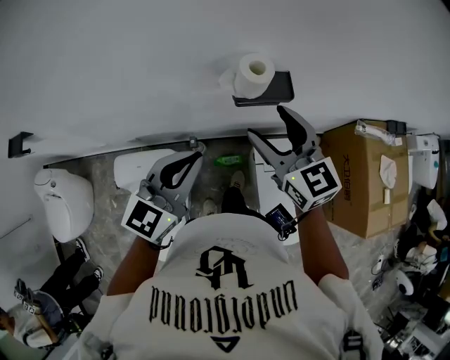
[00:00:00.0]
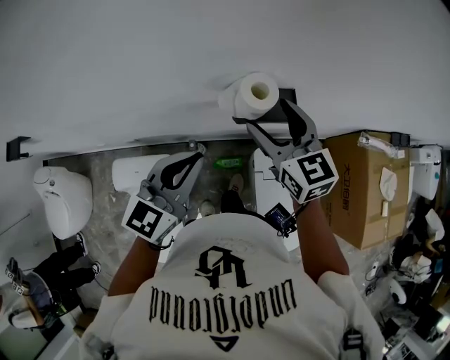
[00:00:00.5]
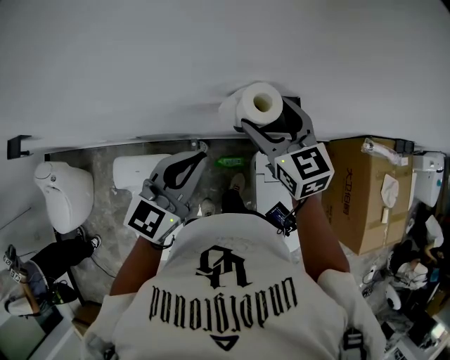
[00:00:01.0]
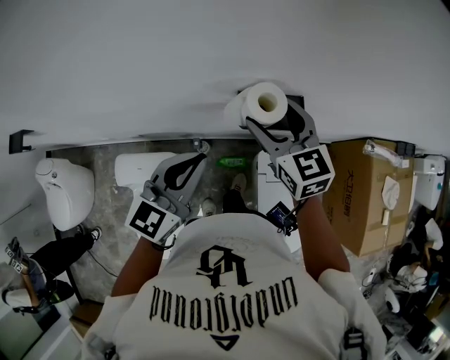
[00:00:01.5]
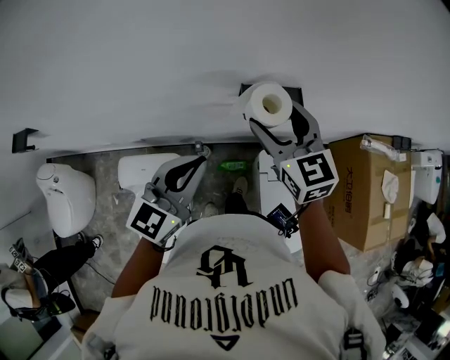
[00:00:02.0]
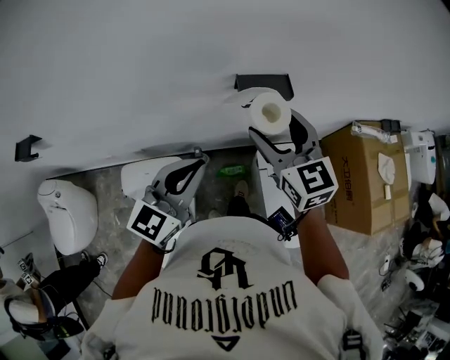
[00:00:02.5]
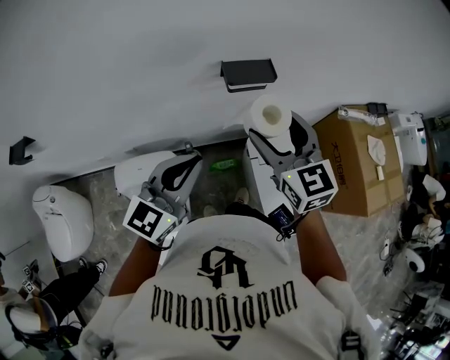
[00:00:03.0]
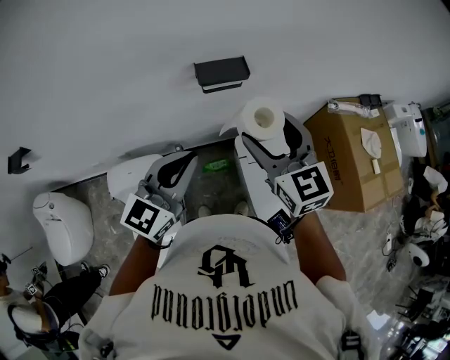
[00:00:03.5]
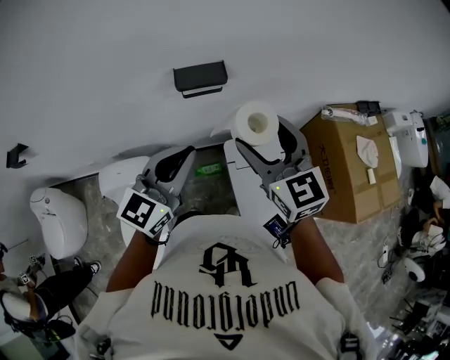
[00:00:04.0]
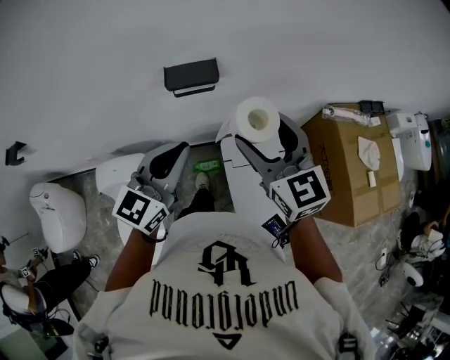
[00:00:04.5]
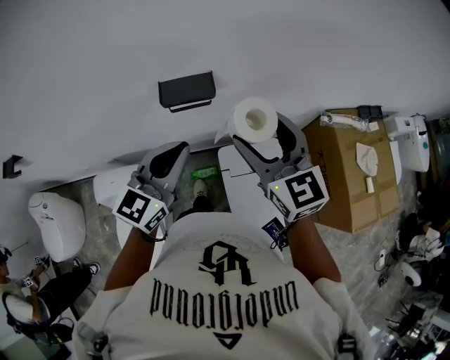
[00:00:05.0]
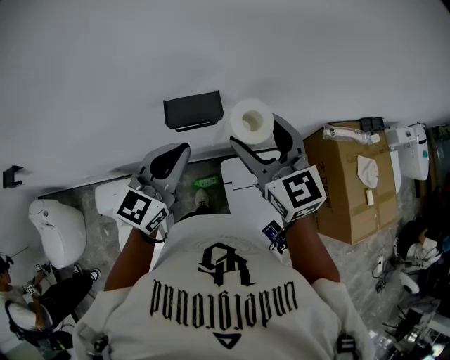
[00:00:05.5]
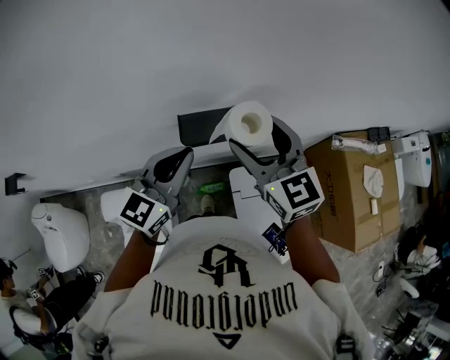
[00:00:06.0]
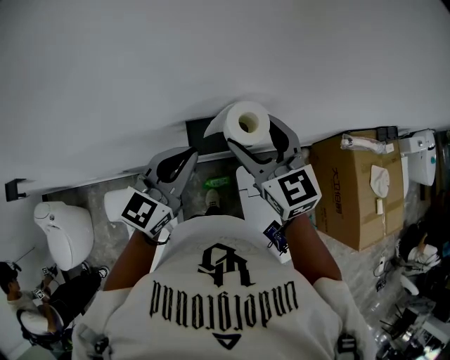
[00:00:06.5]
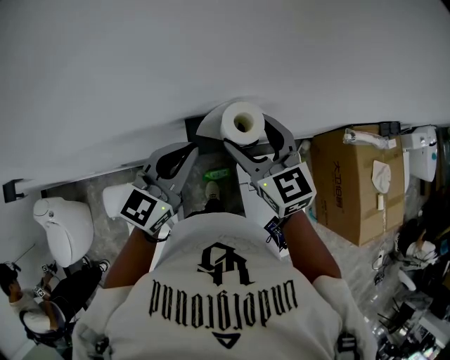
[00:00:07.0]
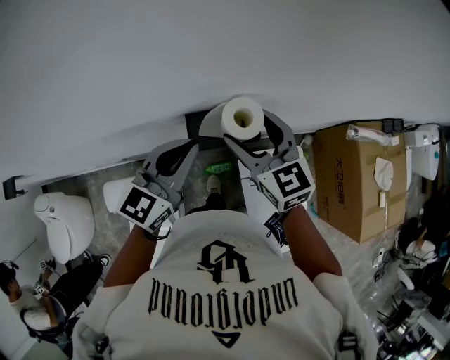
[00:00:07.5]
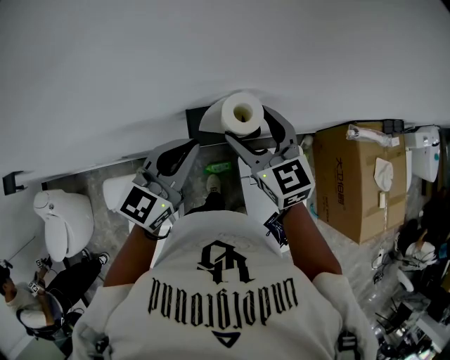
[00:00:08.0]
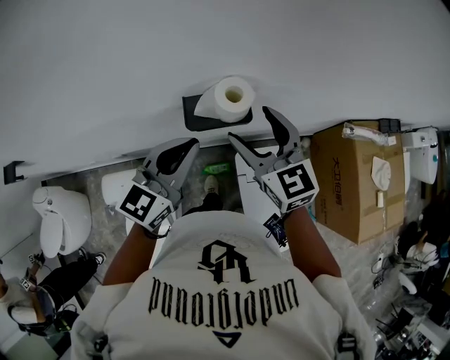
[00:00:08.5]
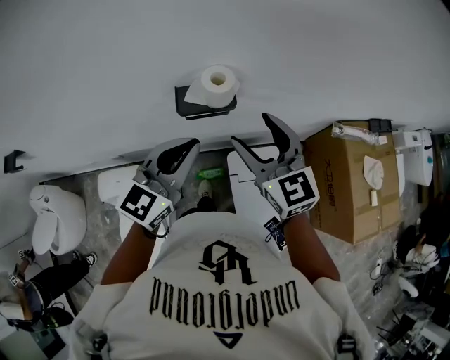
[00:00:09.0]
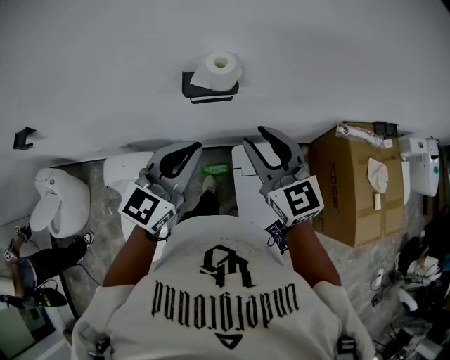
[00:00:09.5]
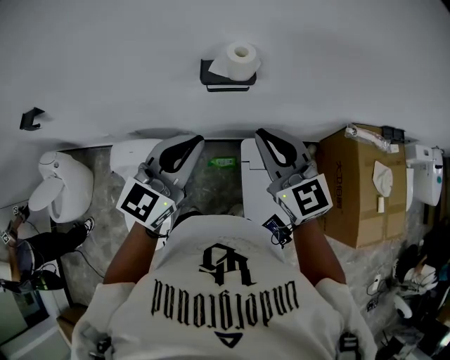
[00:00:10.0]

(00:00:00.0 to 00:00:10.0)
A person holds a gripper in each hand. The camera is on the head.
00:00:00.0 - 00:00:02.0: The right gripper is displaced forward by approximately 5 cm. The left gripper moves roughly 10 cm forward and comes back.
00:00:02.0 - 00:00:04.0: The left gripper travels to the right and backward by some 20 cm. Meanwhile the right gripper is displaced backward and to the right by about 25 cm.
00:00:04.0 - 00:00:06.0: Both grippers move forward, about 20 cm.
00:00:06.0 - 00:00:08.0: The right gripper heads downward, forward and to the left, covering roughly 10 cm, while the left gripper changes place by roughly 5 cm.
00:00:08.0 - 00:00:10.0: Both grippers move backward, about 25 cm. The right gripper closes its fingers.

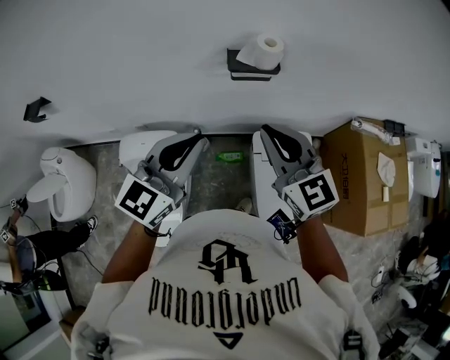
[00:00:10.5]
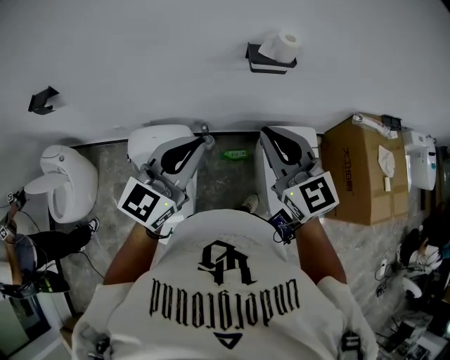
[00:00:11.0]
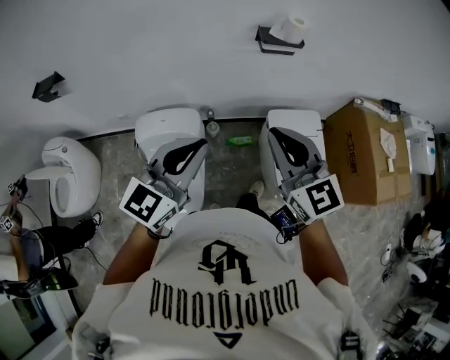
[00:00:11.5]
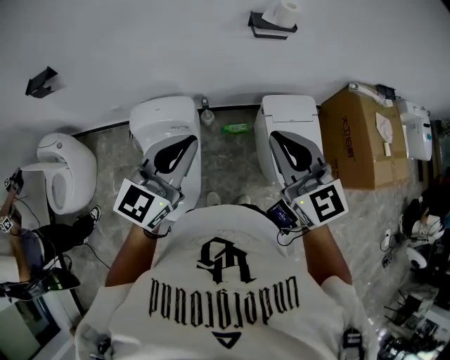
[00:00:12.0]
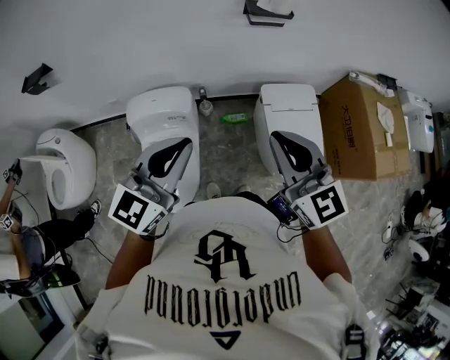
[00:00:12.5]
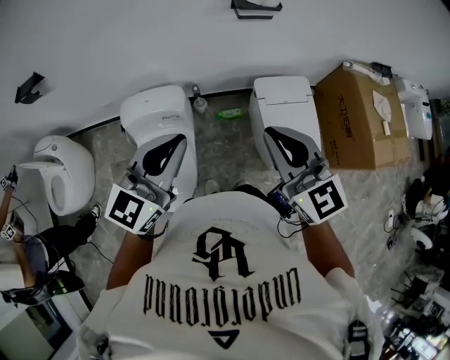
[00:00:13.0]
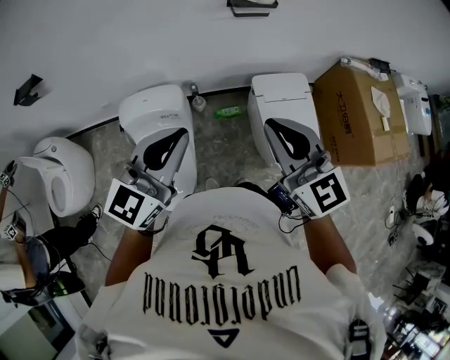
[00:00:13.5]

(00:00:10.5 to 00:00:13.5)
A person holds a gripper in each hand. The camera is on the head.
00:00:10.5 - 00:00:12.0: The two grippers go approximately 25 cm backward and to the left.
00:00:12.0 - 00:00:13.5: The grippers move only a little.

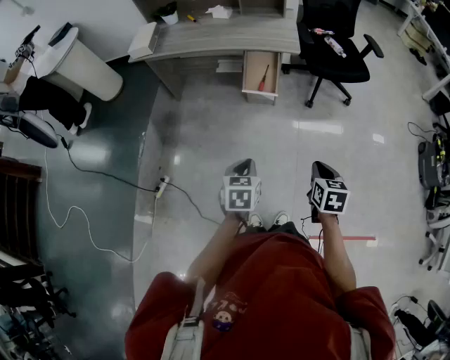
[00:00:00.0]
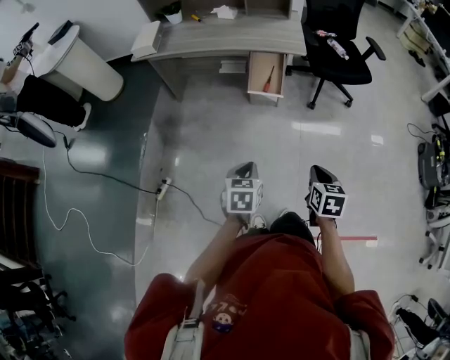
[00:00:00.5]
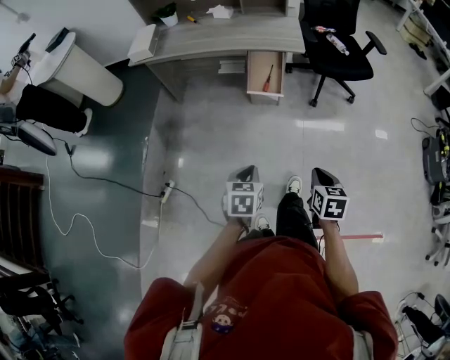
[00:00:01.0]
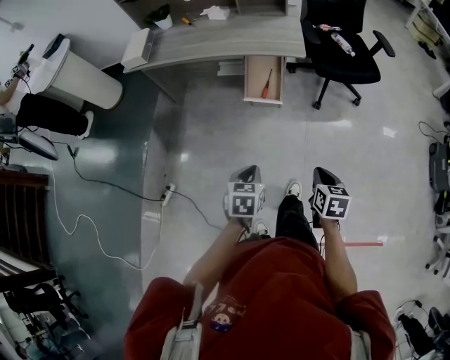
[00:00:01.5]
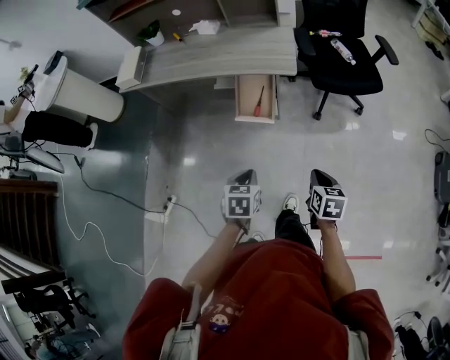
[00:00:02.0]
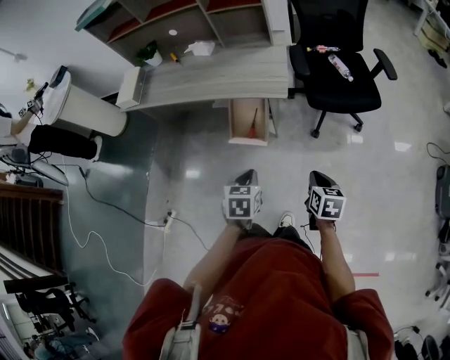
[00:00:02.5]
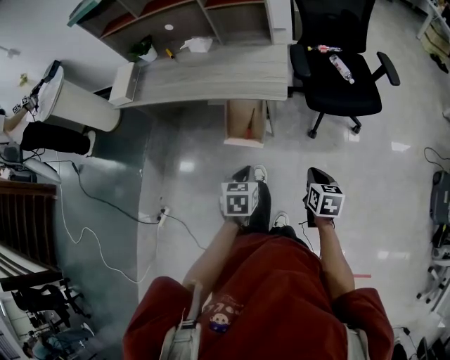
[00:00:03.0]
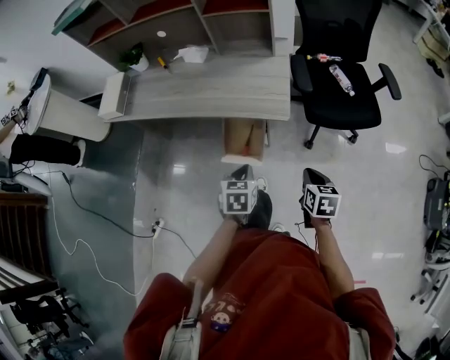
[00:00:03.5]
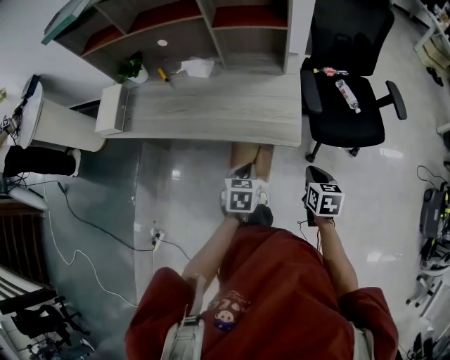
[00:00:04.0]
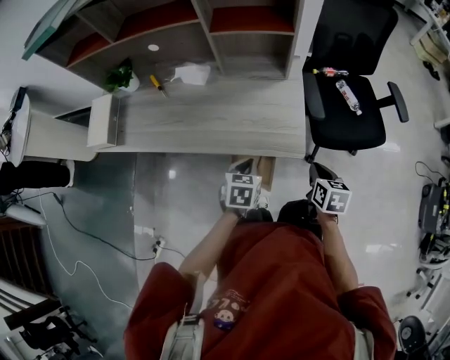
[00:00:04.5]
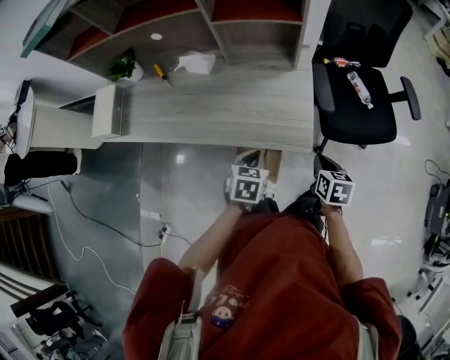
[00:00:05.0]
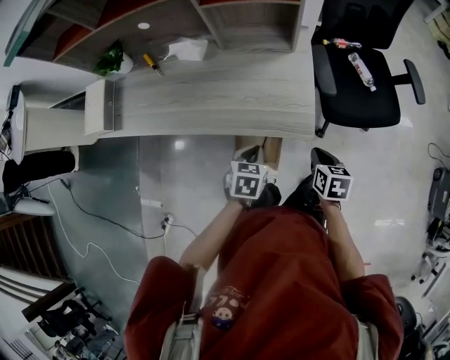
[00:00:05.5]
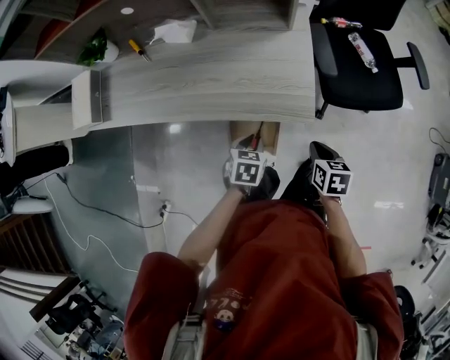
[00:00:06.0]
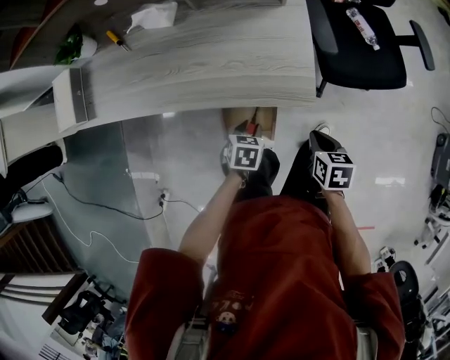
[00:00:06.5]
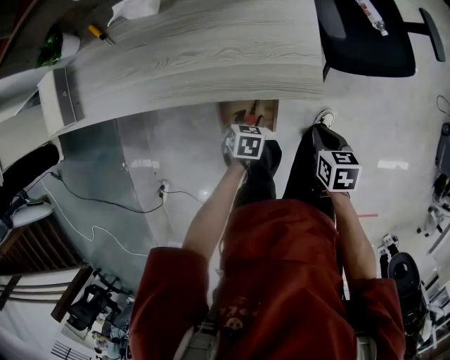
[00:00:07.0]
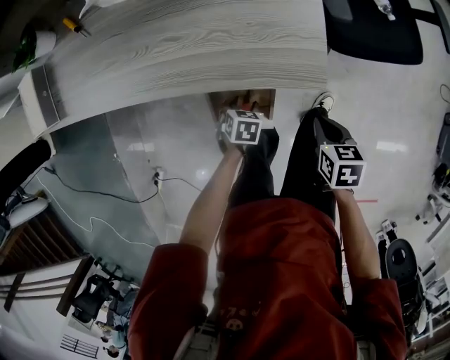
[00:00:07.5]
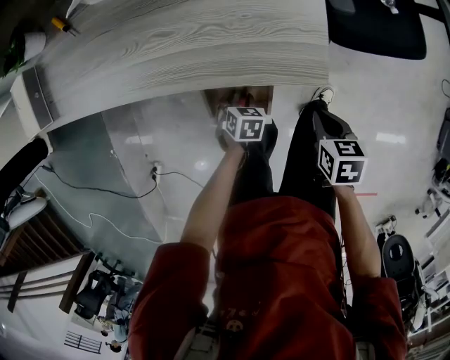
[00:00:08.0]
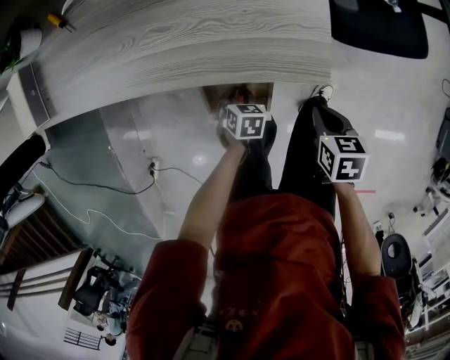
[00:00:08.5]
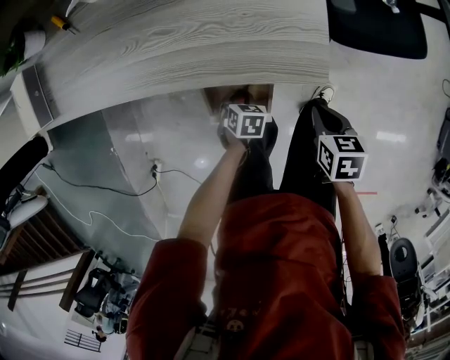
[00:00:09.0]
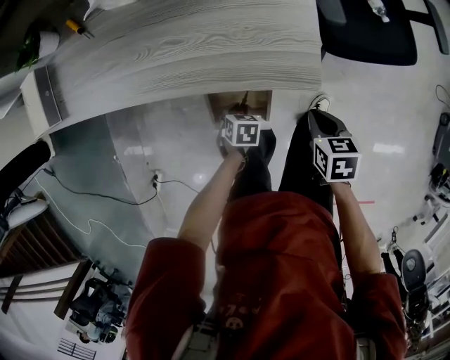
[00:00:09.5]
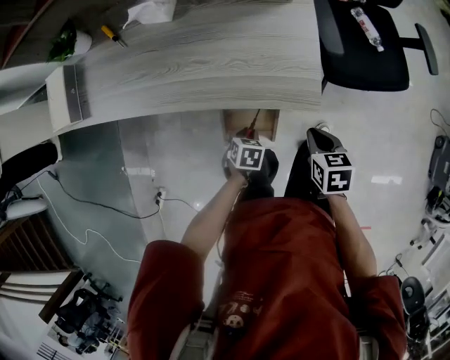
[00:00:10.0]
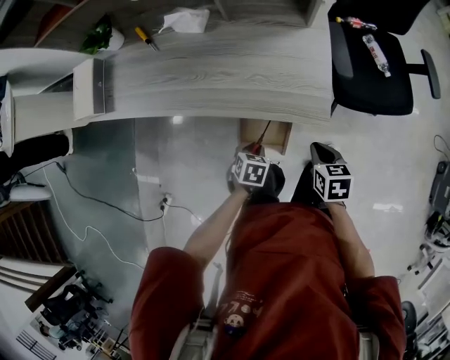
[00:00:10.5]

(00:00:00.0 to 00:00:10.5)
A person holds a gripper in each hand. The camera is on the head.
00:00:00.0 - 00:00:02.0: The left gripper heads forward and to the right, covering approximately 20 cm. The right gripper goes about 20 cm forward.
00:00:02.0 - 00:00:04.0: Both grippers travel together forward, some 35 cm.
00:00:04.0 - 00:00:06.5: The left gripper shifts approximately 20 cm downward, and opens up, while the right gripper shifts about 15 cm downward.
00:00:06.5 - 00:00:08.5: The right gripper shifts approximately 10 cm downward; the left gripper is displaced downward by approximately 15 cm, and opens, then closes once more.
00:00:08.5 - 00:00:10.5: Both grippers move upward, some 15 cm.

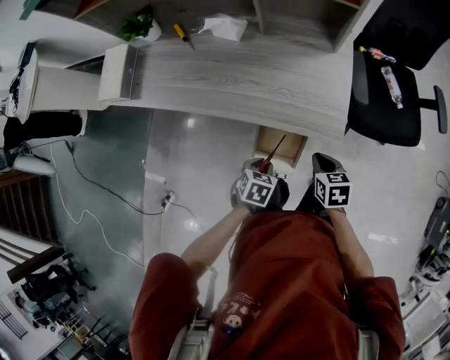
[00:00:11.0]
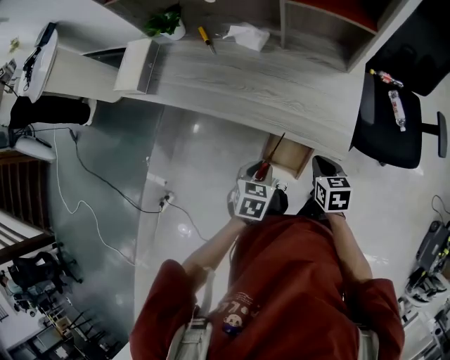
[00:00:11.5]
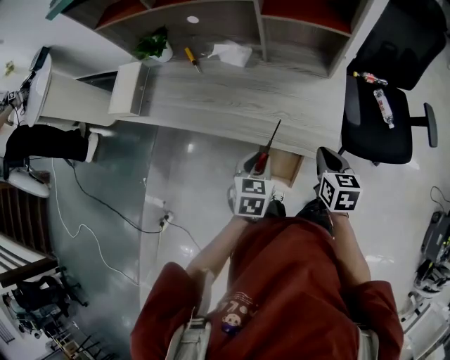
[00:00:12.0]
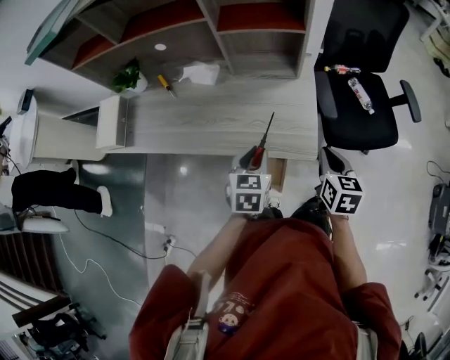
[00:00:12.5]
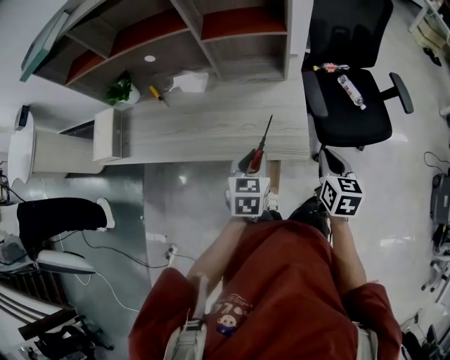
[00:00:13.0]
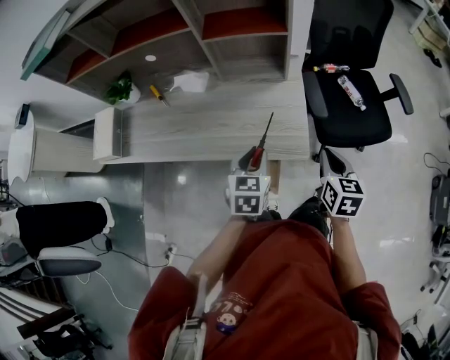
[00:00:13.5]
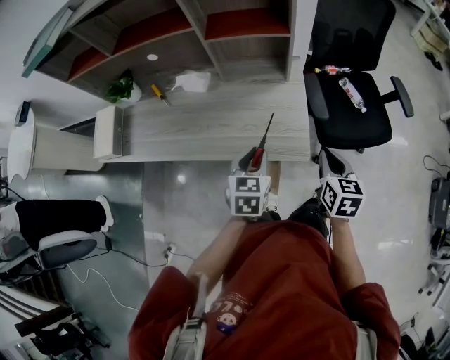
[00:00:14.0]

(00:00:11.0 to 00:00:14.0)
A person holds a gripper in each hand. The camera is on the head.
00:00:11.0 - 00:00:12.5: The left gripper moves upward and forward, approximately 20 cm, and rotates about 30 degrees; the right gripper travels upward and to the right by roughly 15 cm, and changes its angle by some 30 degrees.
00:00:12.5 - 00:00:14.0: There are only small adjustments of the grippers.
